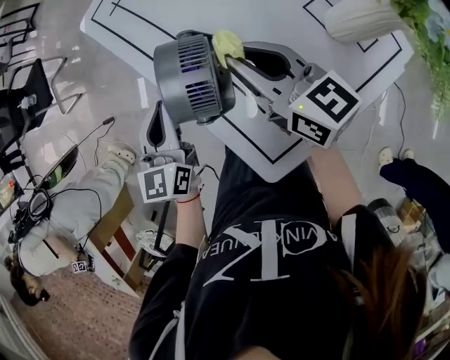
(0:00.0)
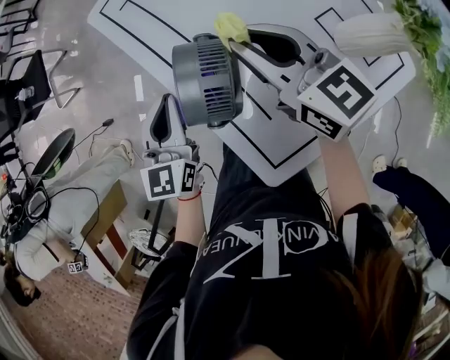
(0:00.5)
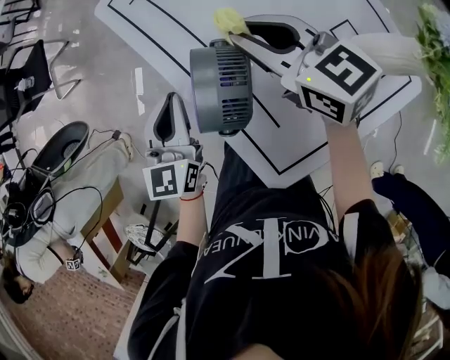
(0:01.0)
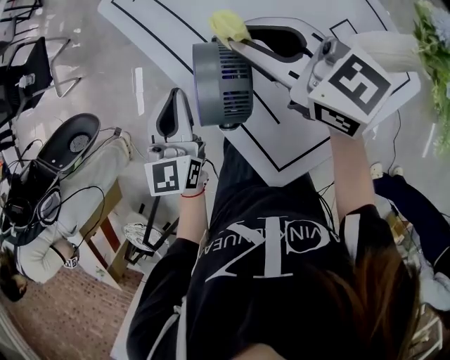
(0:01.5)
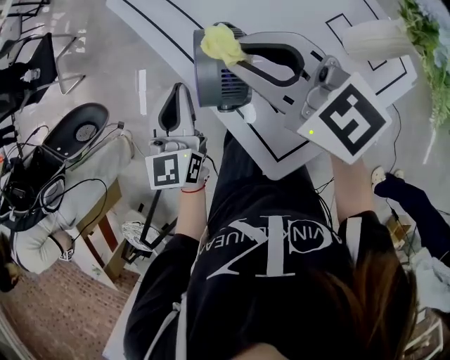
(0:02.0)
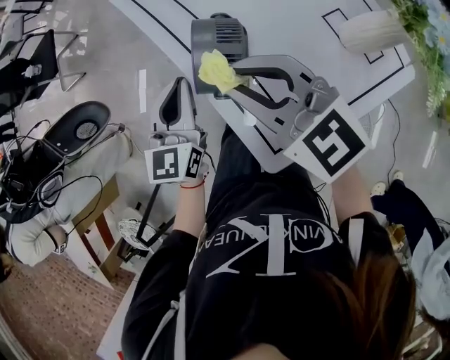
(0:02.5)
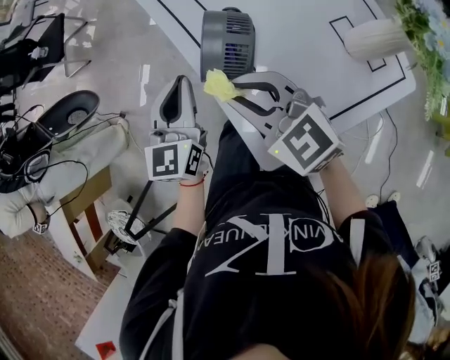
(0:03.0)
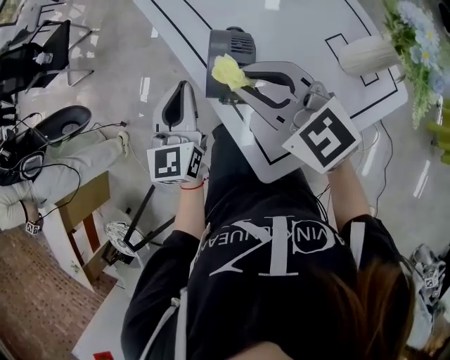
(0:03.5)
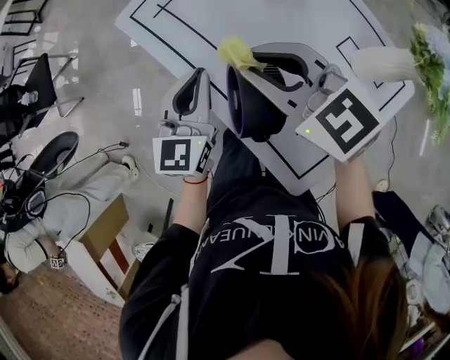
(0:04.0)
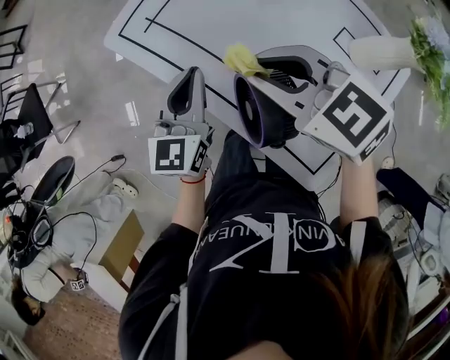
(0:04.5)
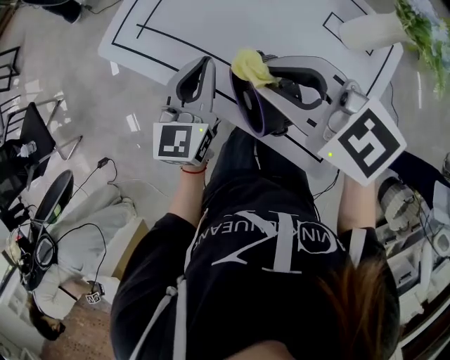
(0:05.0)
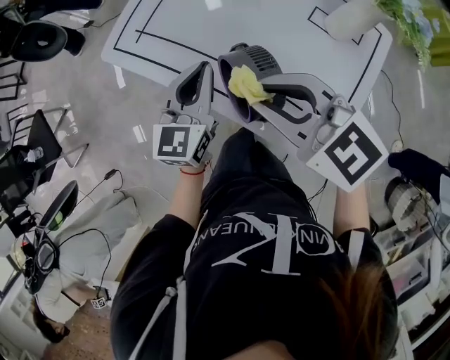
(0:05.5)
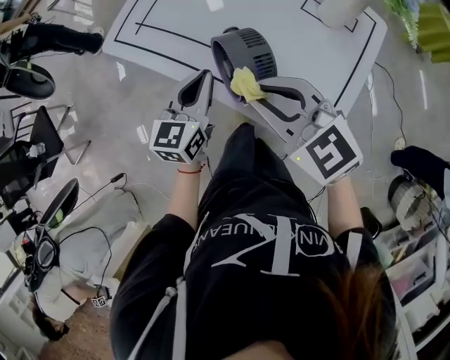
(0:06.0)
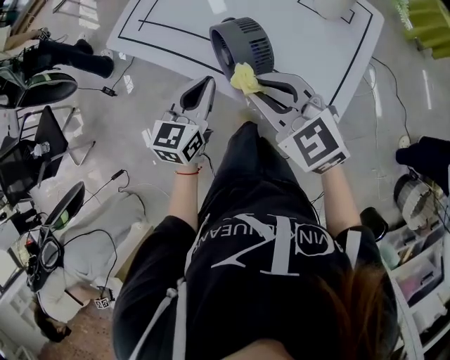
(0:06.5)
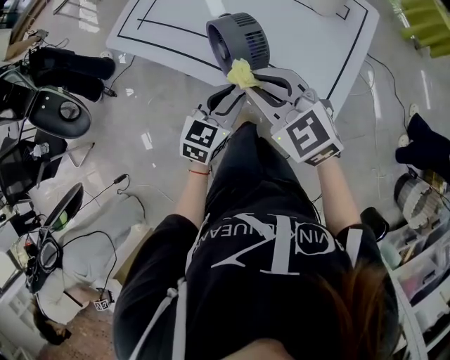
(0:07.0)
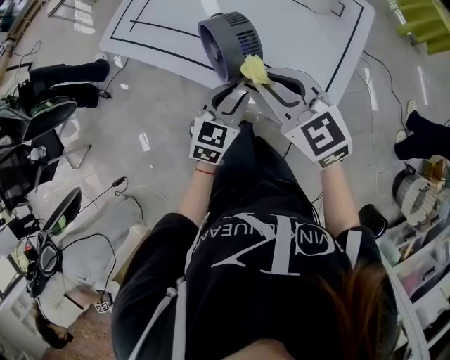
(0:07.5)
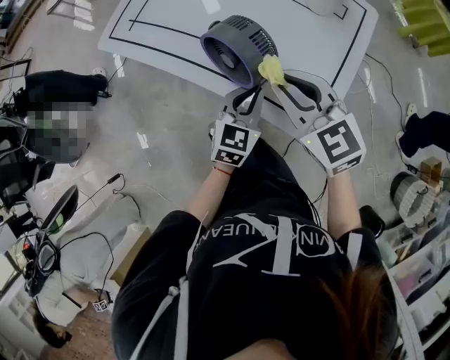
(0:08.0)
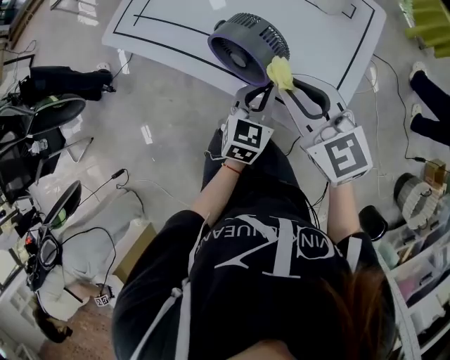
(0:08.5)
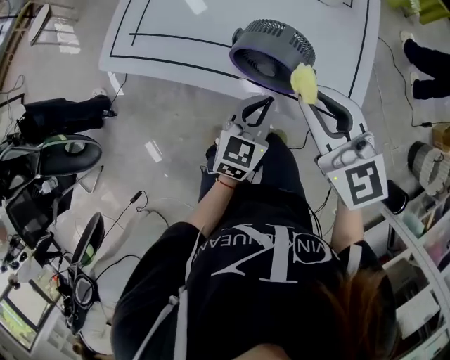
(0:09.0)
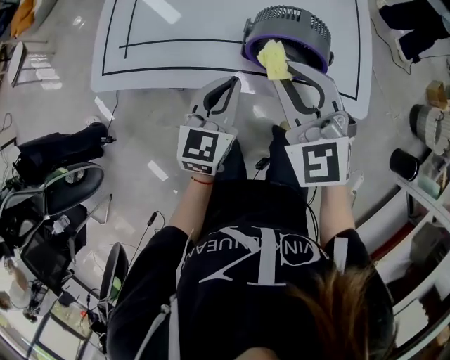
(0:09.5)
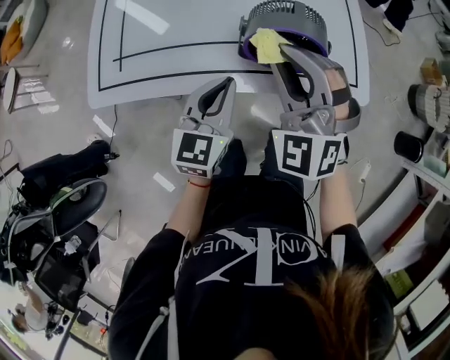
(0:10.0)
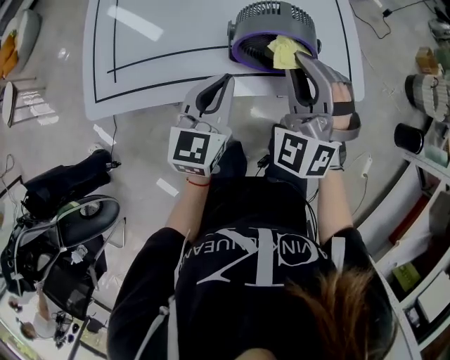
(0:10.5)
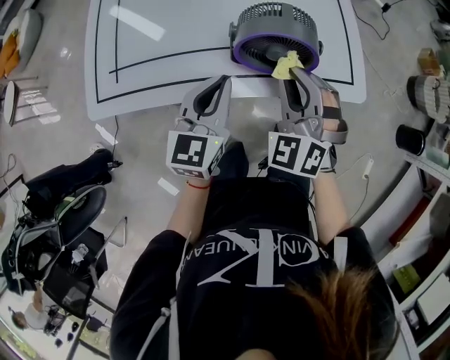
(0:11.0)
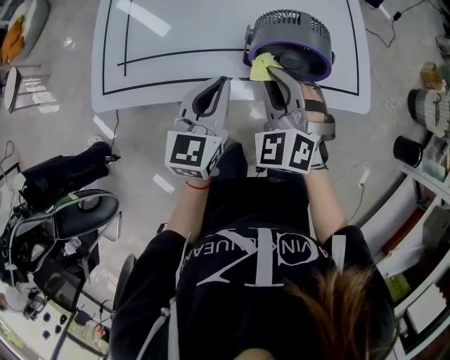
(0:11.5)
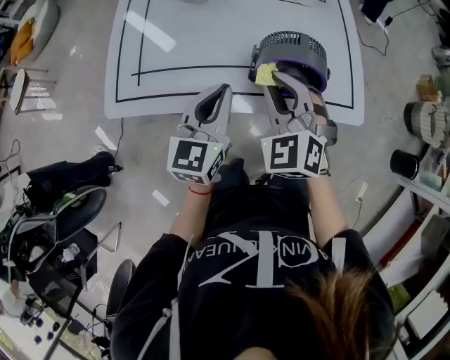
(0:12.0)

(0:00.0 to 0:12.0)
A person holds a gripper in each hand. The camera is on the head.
0:00.0 - 0:02.0: The right gripper is displaced upward and to the left by approximately 10 cm, and rotates approximately 30 degrees.
0:02.0 - 0:04.0: The two grippers go roughly 10 cm forward.
0:04.0 - 0:06.0: The left gripper moves roughly 5 cm, and rotates roughly 20 degrees. The right gripper shifts roughly 10 cm backward.
0:06.0 - 0:08.0: The right gripper shifts some 5 cm to the right, while the left gripper goes about 15 cm to the right, backward and downward.
0:08.0 - 0:10.0: The right gripper moves roughly 10 cm, and changes its angle by some 60 degrees, while the left gripper shifts by roughly 15 cm, and rotates about 30 degrees.
0:10.0 - 0:12.0: The left gripper moves roughly 5 cm.

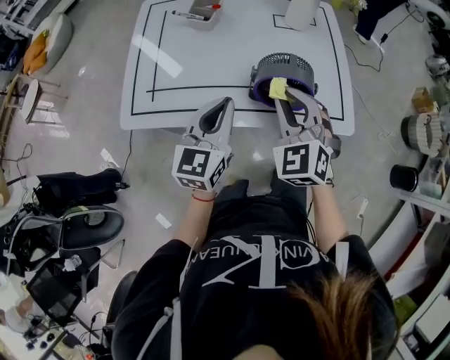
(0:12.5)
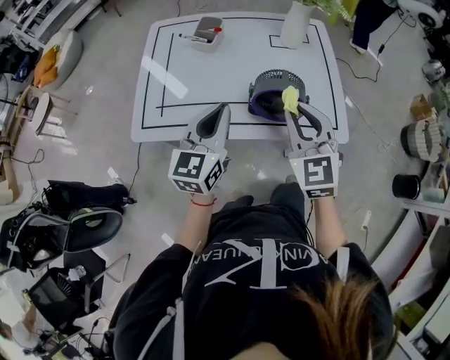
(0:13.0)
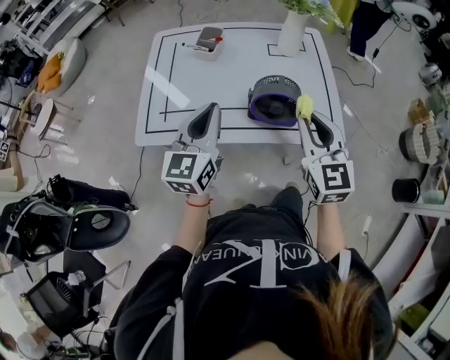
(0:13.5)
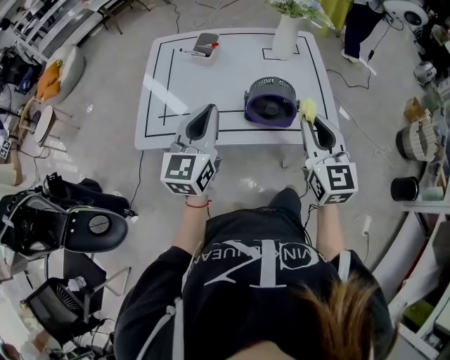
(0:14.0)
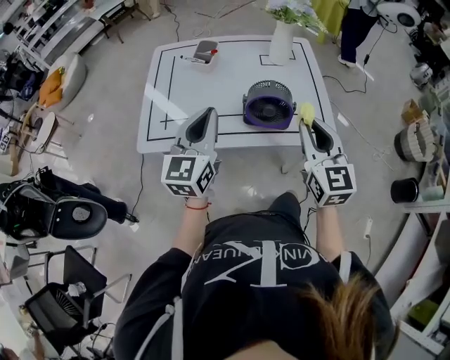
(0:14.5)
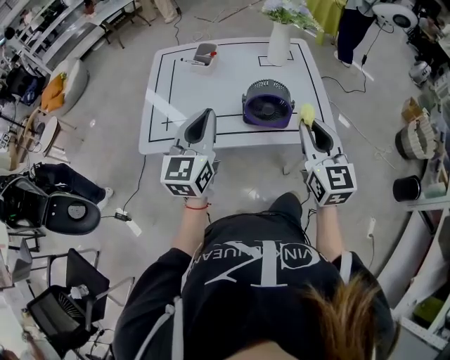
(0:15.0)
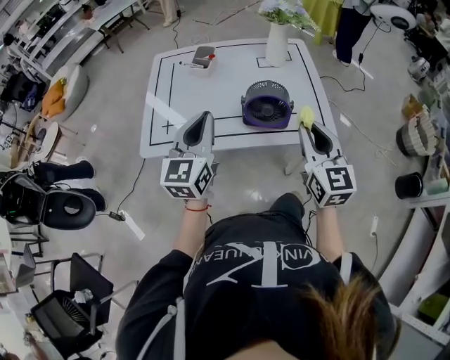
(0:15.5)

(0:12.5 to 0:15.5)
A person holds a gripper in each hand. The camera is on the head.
0:12.5 - 0:14.0: The right gripper shifts roughly 15 cm to the right, backward and upward, and rotates roughly 40 degrees. The left gripper shifts some 10 cm upward and backward.
0:14.0 - 0:15.5: The grippers move only a little.

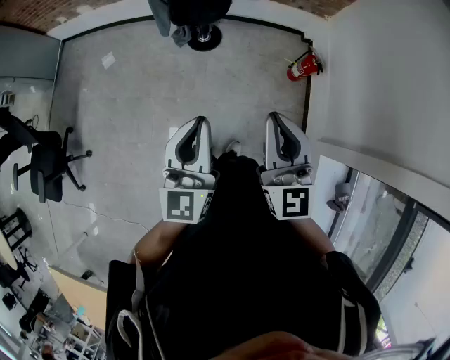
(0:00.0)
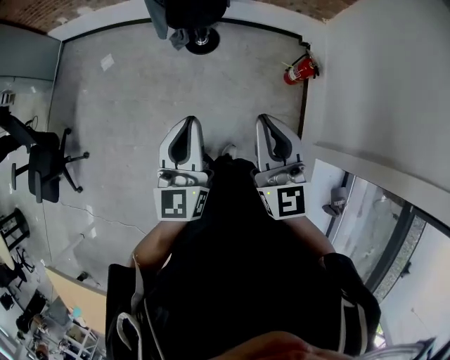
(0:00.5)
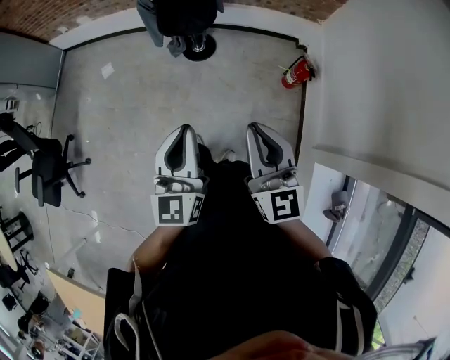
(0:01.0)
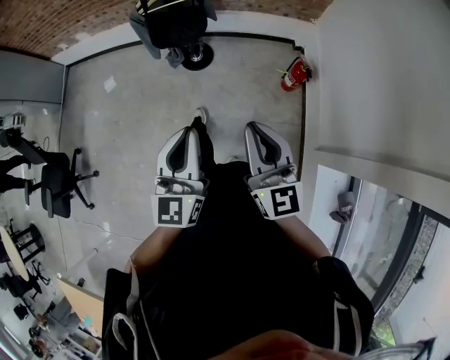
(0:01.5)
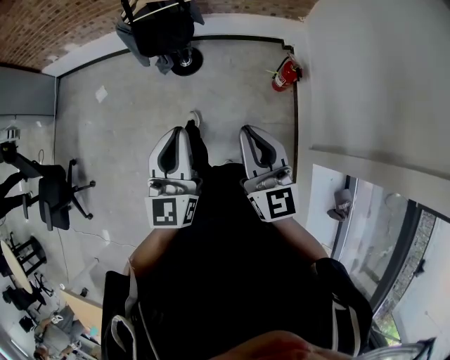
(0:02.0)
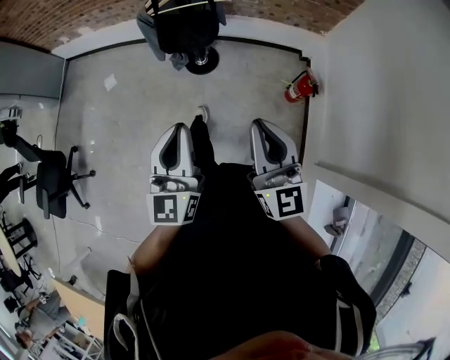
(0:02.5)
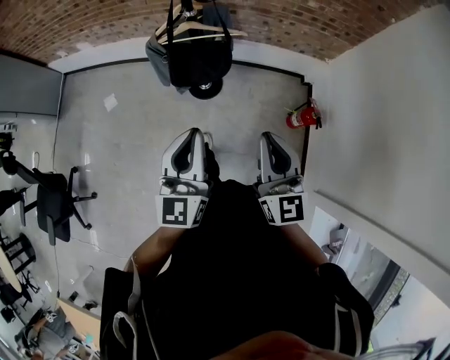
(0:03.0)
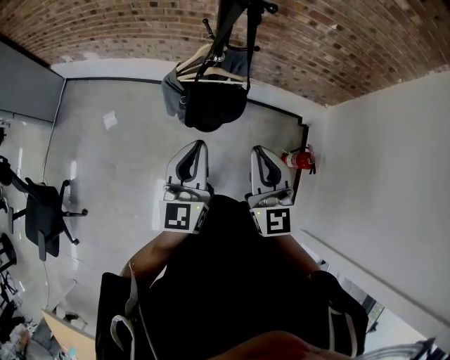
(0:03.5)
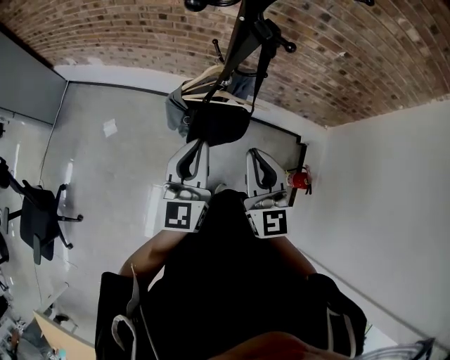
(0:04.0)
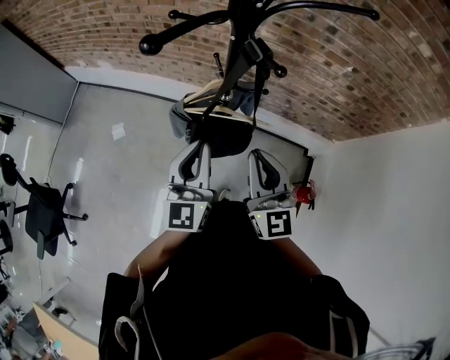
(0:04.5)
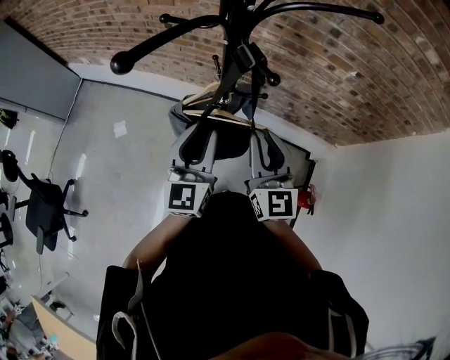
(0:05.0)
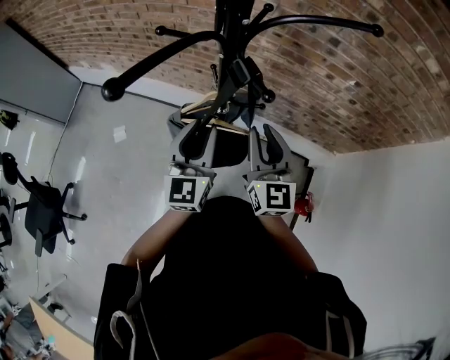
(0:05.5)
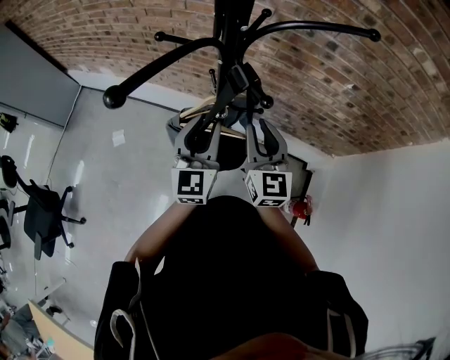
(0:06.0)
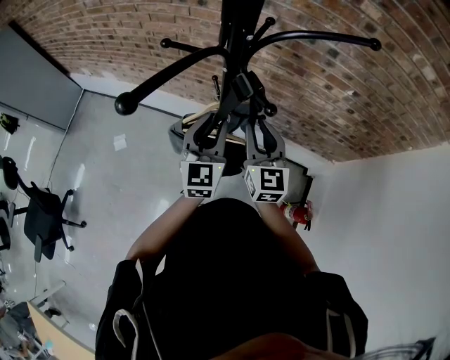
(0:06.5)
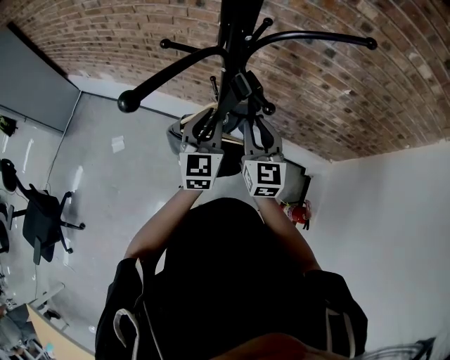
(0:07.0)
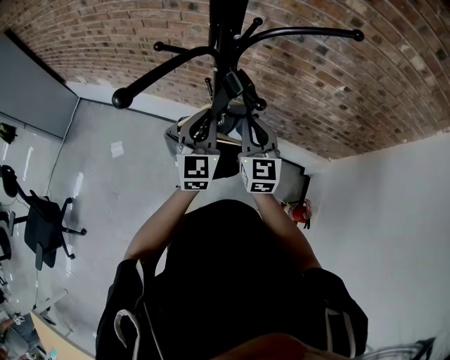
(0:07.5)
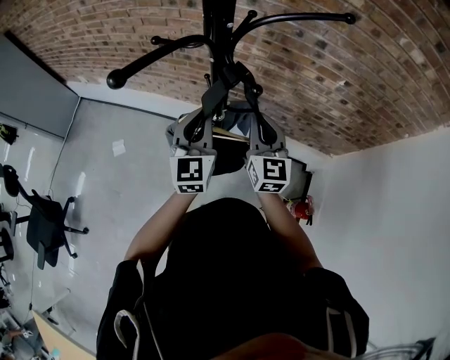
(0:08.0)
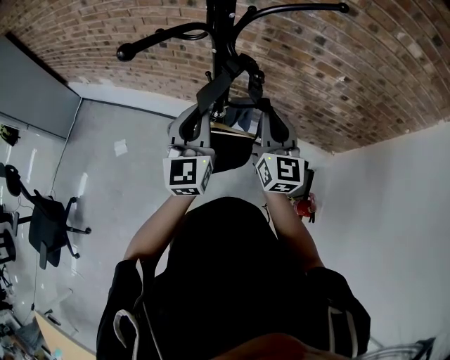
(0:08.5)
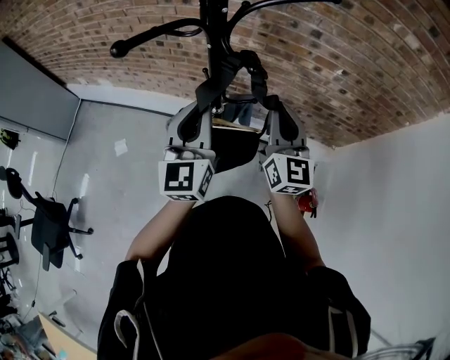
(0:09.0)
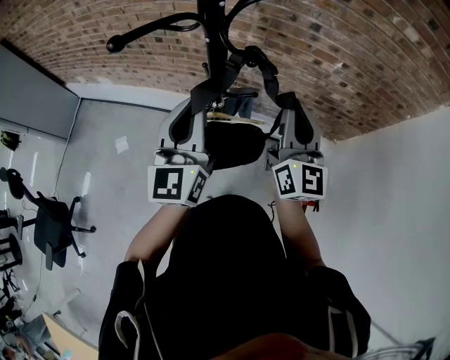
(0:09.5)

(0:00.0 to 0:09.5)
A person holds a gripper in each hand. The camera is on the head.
0:00.0 - 0:02.0: The grippers both shift to the right by approximately 10 cm.
0:02.0 - 0:04.0: The two grippers travel together, forward and to the left, roughly 50 cm.
0:04.0 - 0:05.5: The left gripper travels forward by roughly 15 cm, and opens its fingers, while the right gripper goes about 20 cm forward and to the right.
0:05.5 - 0:07.5: The grippers both shift forward by roughly 5 cm. The left gripper closes its fingers.
0:07.5 - 0:09.5: The right gripper travels upward, to the right and backward by roughly 15 cm, and swivels some 20 degrees. The left gripper moves upward and backward, some 15 cm.

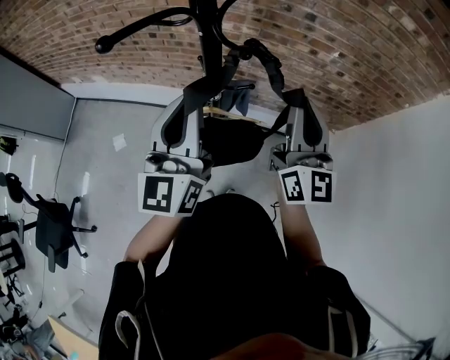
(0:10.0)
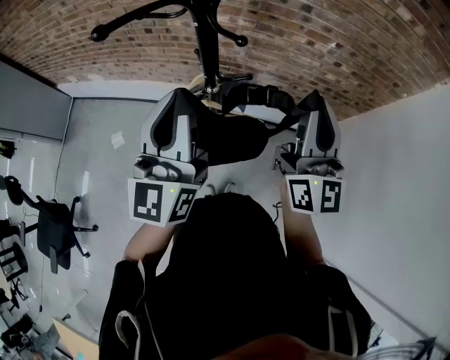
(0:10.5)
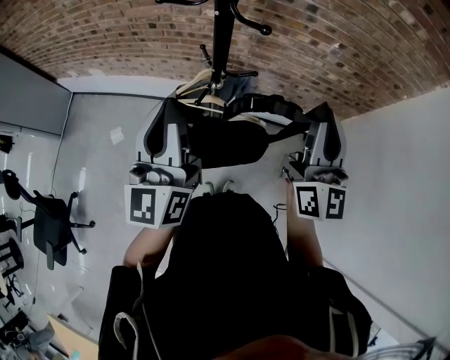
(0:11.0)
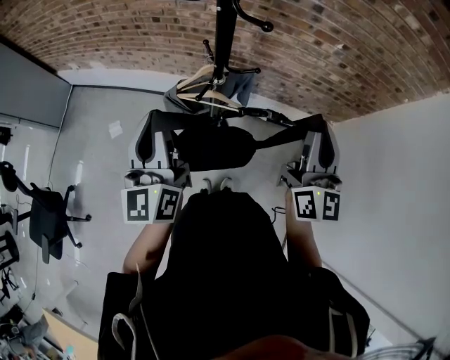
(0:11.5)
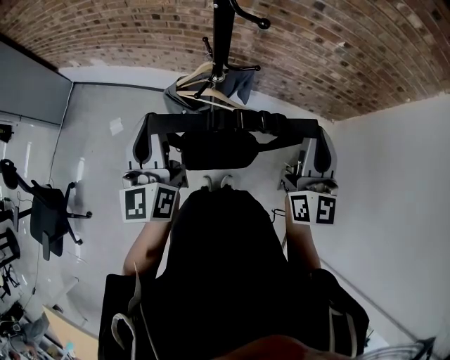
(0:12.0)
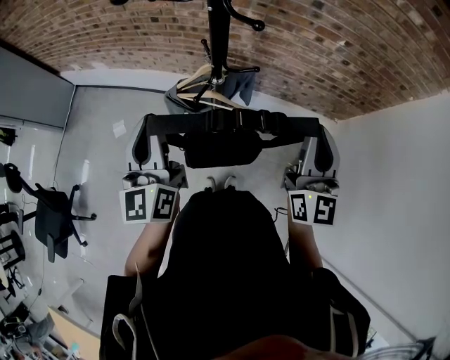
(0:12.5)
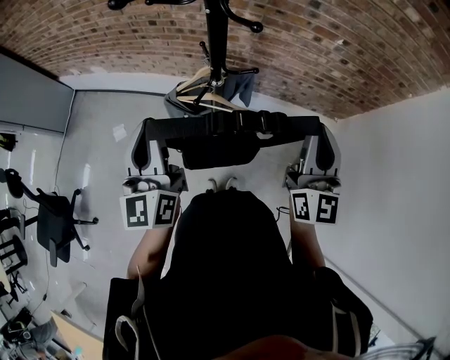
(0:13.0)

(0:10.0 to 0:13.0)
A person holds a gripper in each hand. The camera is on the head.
0:10.0 - 0:11.5: The right gripper moves backward, some 5 cm. Meanwhile the left gripper heads to the left and backward, covering about 10 cm.
0:11.5 - 0:13.0: There are only small adjustments of the grippers.
